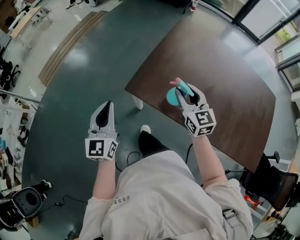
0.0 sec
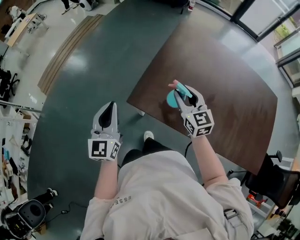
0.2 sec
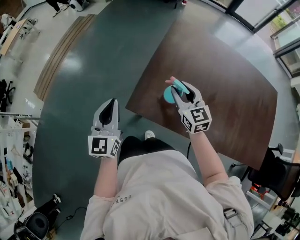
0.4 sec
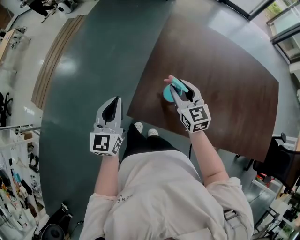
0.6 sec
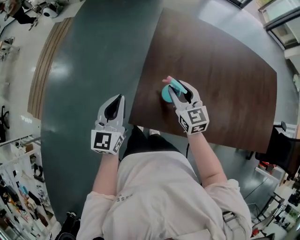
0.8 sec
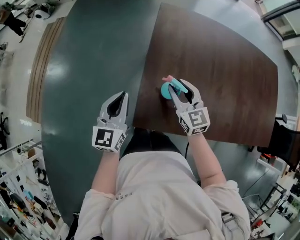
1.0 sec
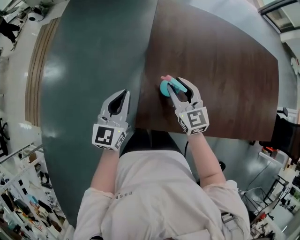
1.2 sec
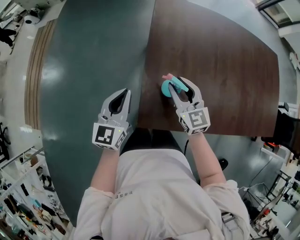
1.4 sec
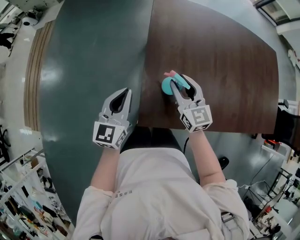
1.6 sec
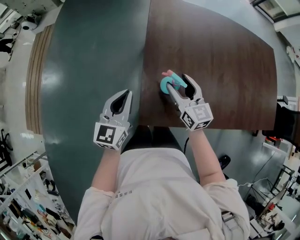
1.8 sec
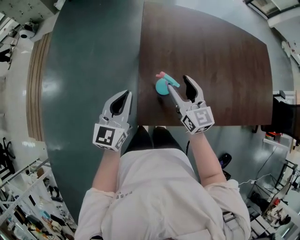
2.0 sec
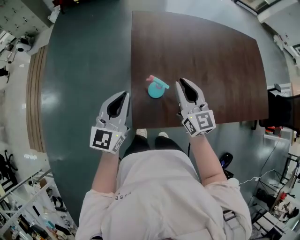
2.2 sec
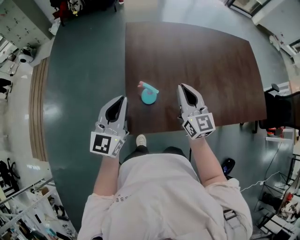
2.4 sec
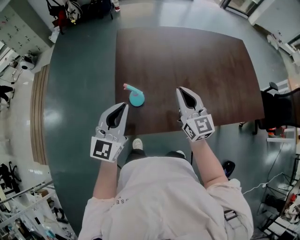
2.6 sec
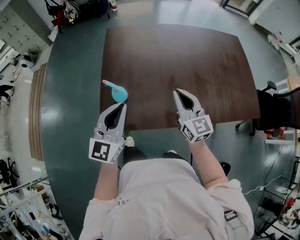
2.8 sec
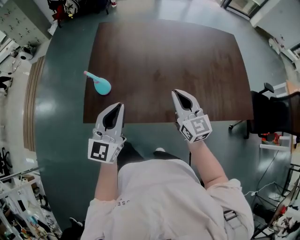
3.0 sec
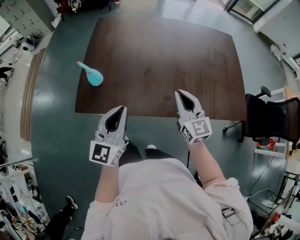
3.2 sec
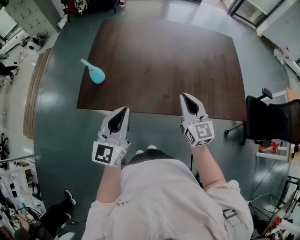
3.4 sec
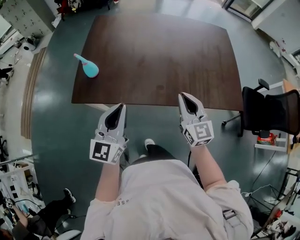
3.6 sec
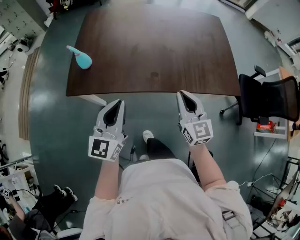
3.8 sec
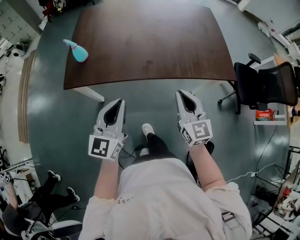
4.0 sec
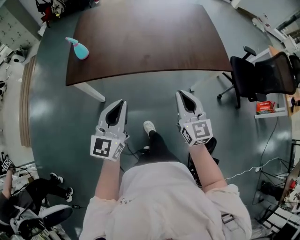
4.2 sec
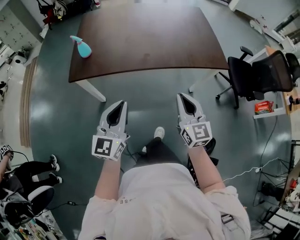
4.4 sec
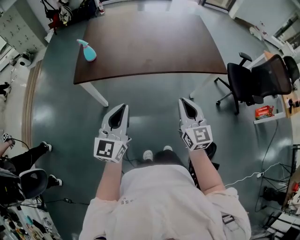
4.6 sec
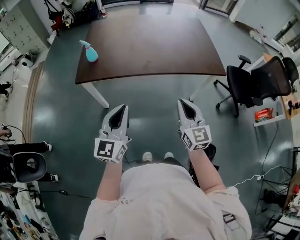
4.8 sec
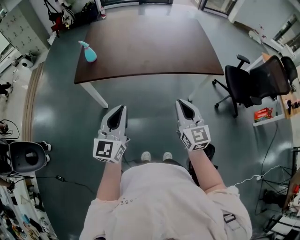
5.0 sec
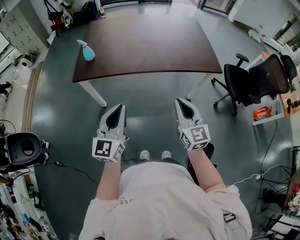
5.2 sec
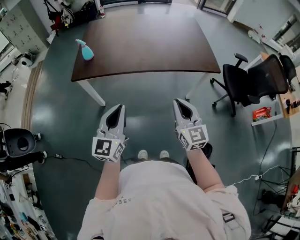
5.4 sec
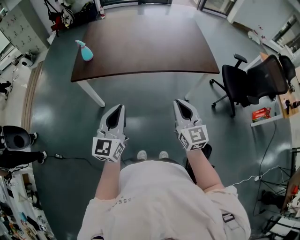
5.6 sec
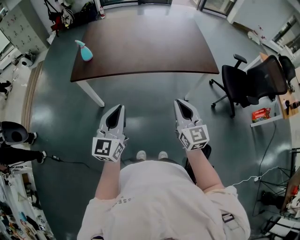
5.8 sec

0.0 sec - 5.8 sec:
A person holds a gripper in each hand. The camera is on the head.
0.0 sec - 1.4 sec: The right gripper shifts by approximately 20 cm, and rotates some 20 degrees. The left gripper shifts by roughly 30 cm, and rotates some 40 degrees.
1.4 sec - 2.8 sec: Both grippers move to the right and upward, some 25 cm. The left gripper turns by approximately 20 degrees, while the right gripper closes.
2.8 sec - 4.4 sec: Both grippers travel together backward and to the right, some 40 cm.
4.4 sec - 5.8 sec: The two grippers go approximately 5 cm backward.

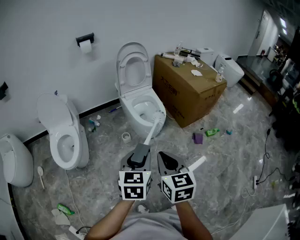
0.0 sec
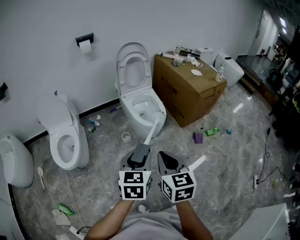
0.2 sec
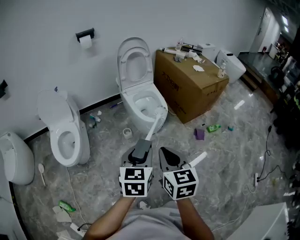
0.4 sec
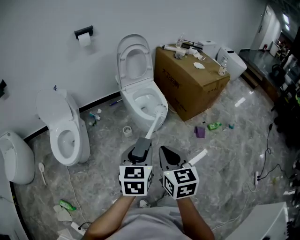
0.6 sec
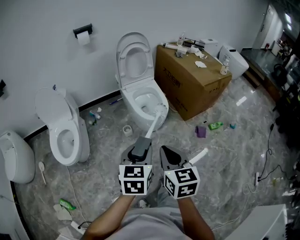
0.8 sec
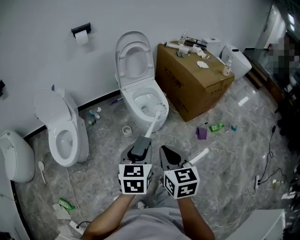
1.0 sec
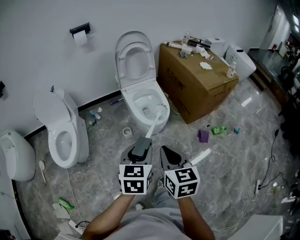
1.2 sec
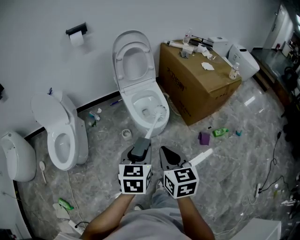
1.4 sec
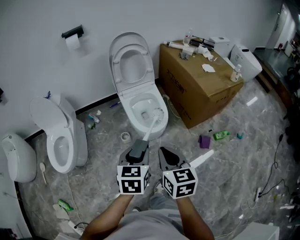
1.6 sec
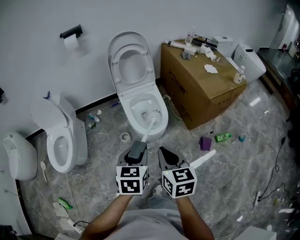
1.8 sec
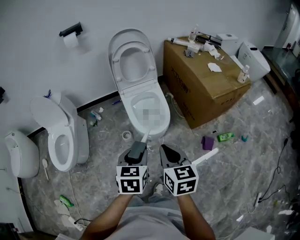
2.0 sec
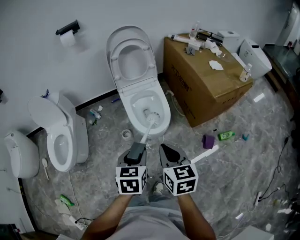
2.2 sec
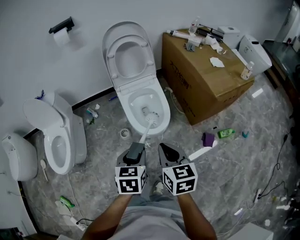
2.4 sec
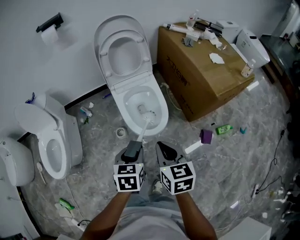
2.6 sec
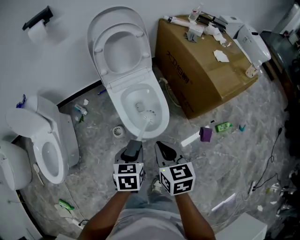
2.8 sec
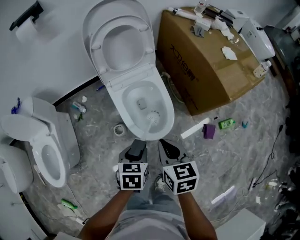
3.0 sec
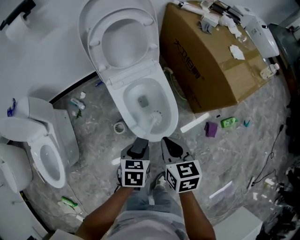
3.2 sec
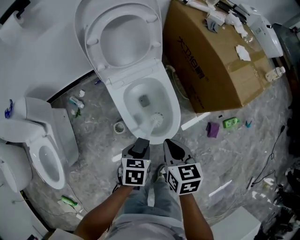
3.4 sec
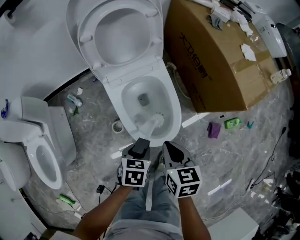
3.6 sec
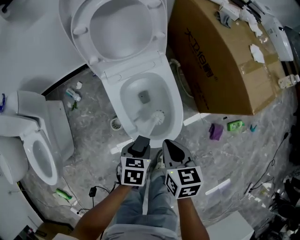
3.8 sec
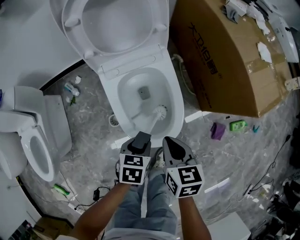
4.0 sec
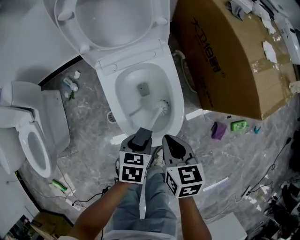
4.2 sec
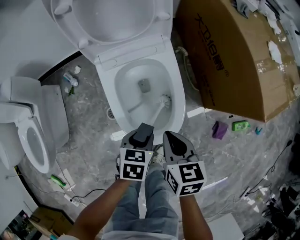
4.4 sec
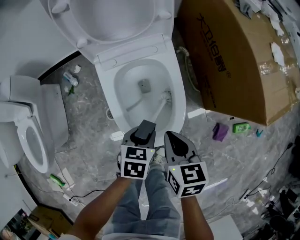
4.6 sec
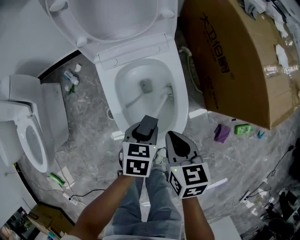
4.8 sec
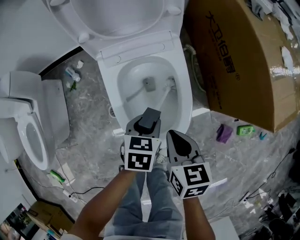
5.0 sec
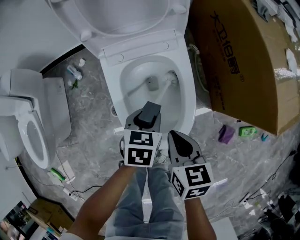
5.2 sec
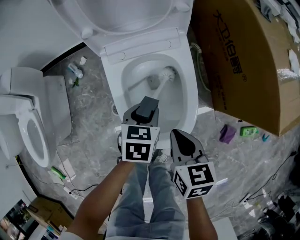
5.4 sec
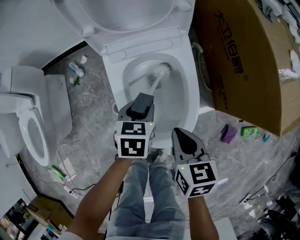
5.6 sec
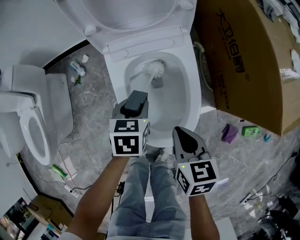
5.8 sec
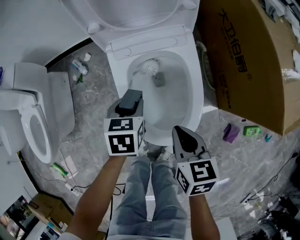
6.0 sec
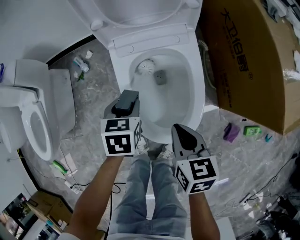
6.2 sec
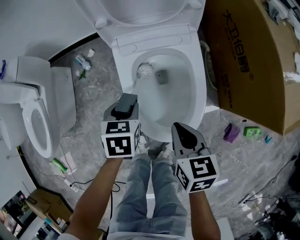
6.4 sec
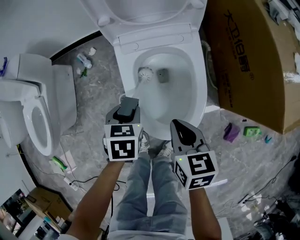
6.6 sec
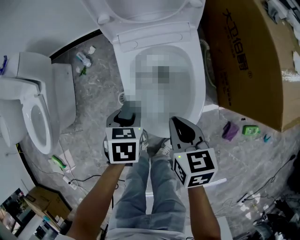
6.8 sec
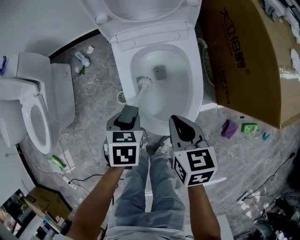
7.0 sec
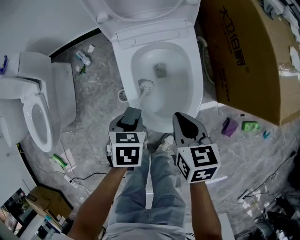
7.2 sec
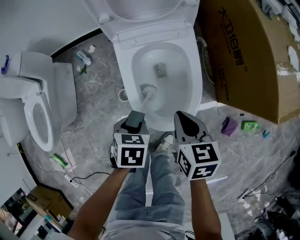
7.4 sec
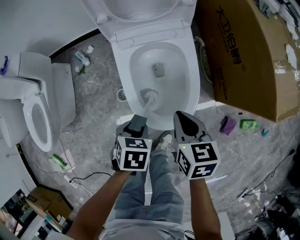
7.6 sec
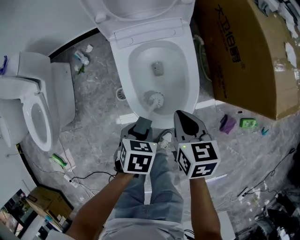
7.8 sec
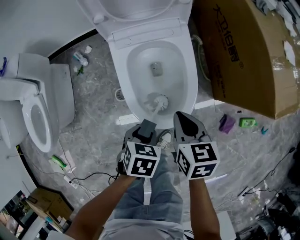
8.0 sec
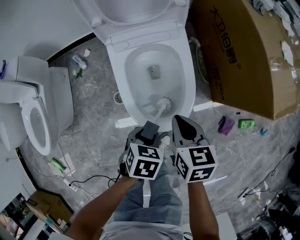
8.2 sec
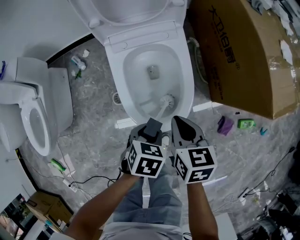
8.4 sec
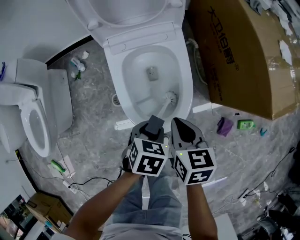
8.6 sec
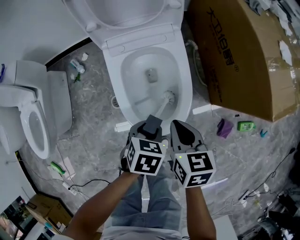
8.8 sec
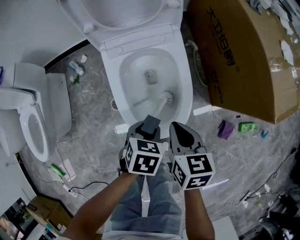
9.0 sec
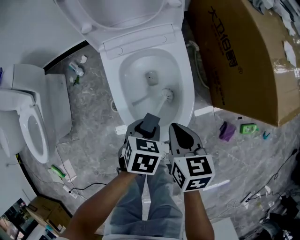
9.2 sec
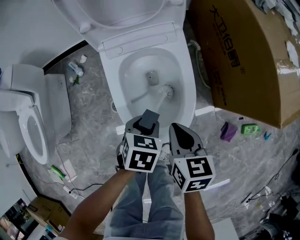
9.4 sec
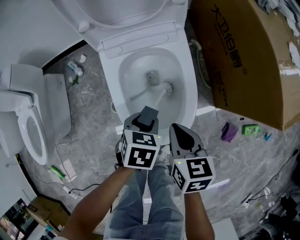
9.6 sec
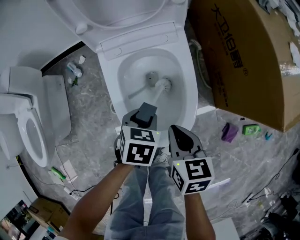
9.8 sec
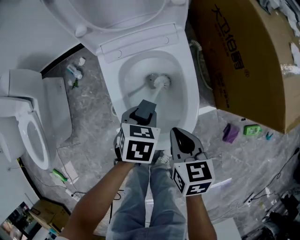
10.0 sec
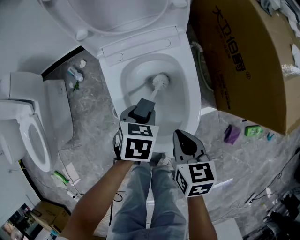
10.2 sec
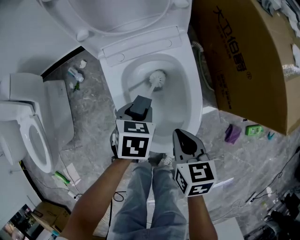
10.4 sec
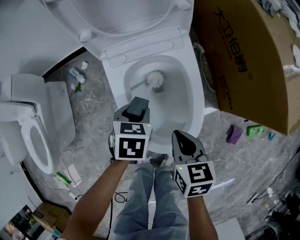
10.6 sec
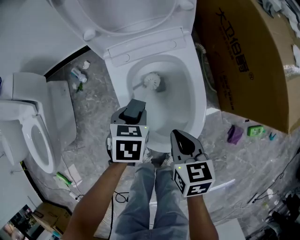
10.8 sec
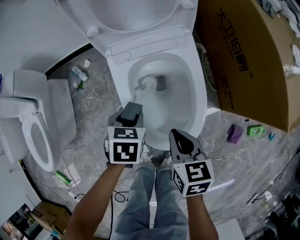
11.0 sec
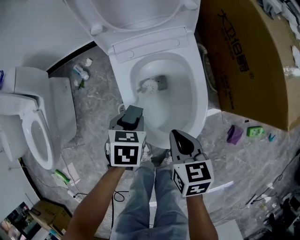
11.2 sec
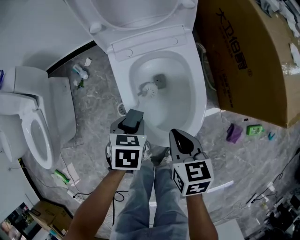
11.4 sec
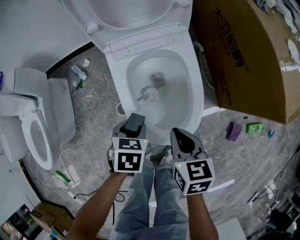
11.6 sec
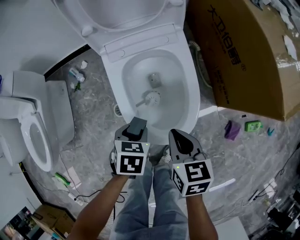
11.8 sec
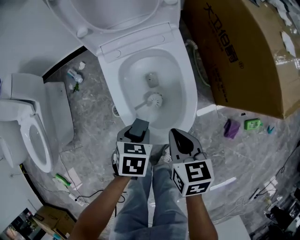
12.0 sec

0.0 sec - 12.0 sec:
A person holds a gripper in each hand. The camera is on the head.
0.0 sec - 1.6 sec: Both grippers move forward and to the right, some 25 cm.
1.6 sec - 3.0 sec: The grippers both shift forward and downward by approximately 30 cm. The left gripper rotates about 20 degrees.
3.0 sec - 4.4 sec: The two grippers go some 20 cm downward and forward.
4.4 sec - 6.0 sec: The left gripper shifts roughly 15 cm forward and to the left.
6.0 sec - 7.6 sec: The left gripper moves backward, about 15 cm.
7.6 sec - 9.0 sec: The left gripper goes approximately 10 cm to the right.
9.0 sec - 10.4 sec: The right gripper moves downward, approximately 5 cm, while the left gripper goes roughly 15 cm forward and to the left.
10.4 sec - 12.0 sec: The left gripper travels backward by about 10 cm.

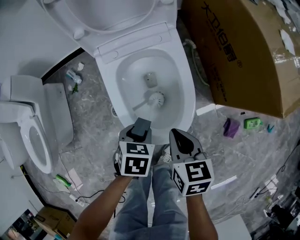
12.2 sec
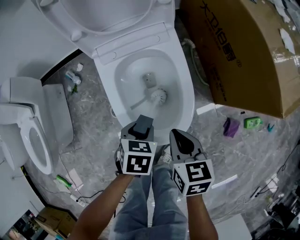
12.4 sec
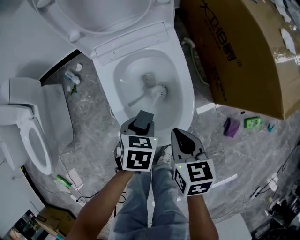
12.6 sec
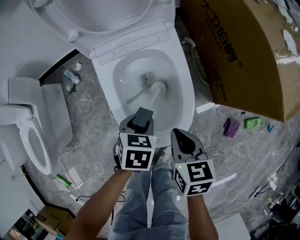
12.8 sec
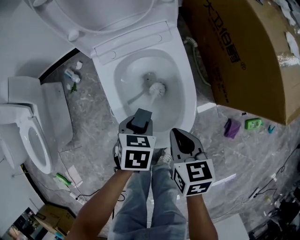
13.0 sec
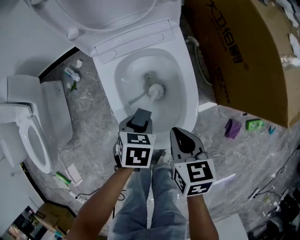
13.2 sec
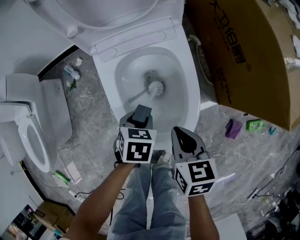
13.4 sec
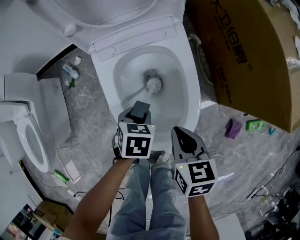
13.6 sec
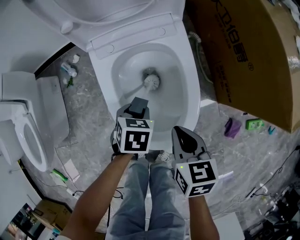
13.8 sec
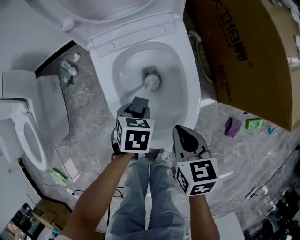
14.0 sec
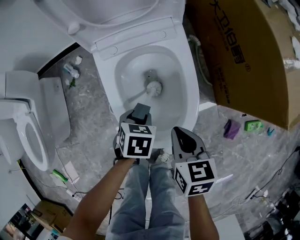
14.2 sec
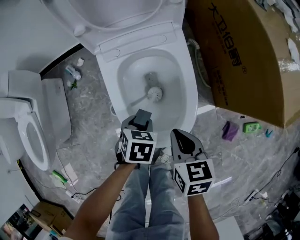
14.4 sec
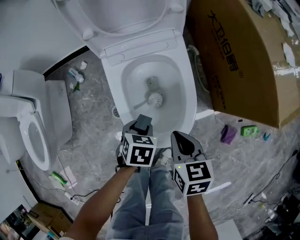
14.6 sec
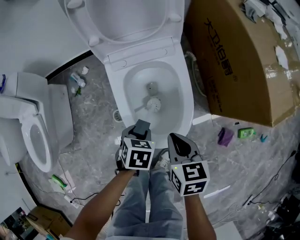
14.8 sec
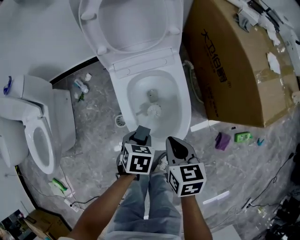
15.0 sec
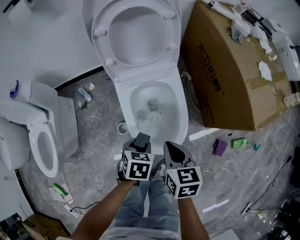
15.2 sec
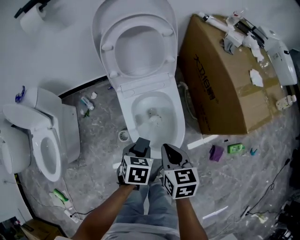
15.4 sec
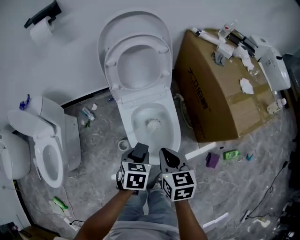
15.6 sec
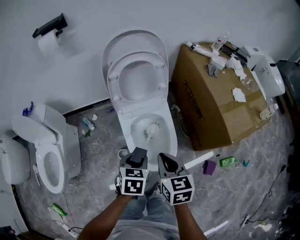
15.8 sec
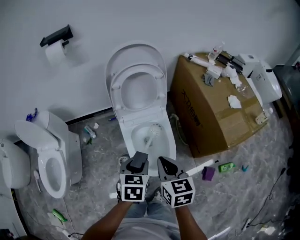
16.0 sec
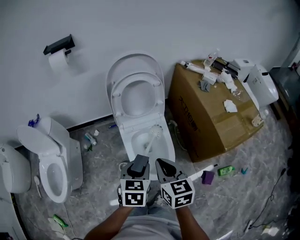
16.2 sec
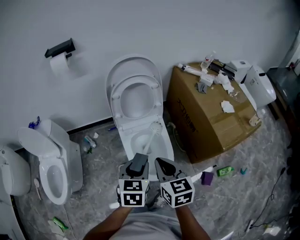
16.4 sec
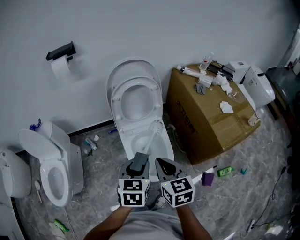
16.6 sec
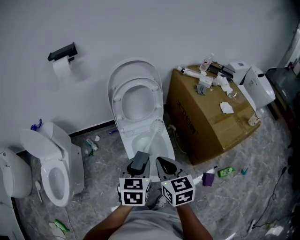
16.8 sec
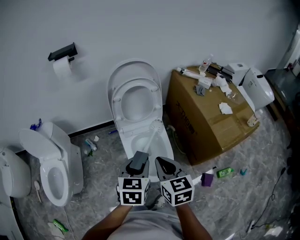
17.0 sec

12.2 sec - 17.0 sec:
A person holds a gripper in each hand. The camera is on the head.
12.2 sec - 13.8 sec: The left gripper is displaced forward and downward by approximately 10 cm. Meanwhile the right gripper moves approximately 5 cm.
13.8 sec - 15.4 sec: Both grippers travel together upward, approximately 20 cm.
15.4 sec - 17.0 sec: The two grippers go roughly 25 cm upward. The left gripper changes its angle by roughly 30 degrees.

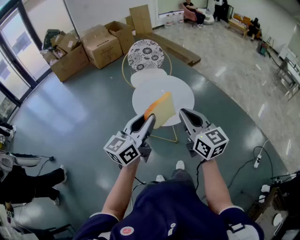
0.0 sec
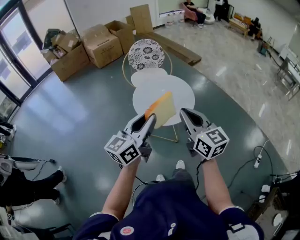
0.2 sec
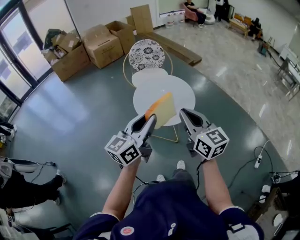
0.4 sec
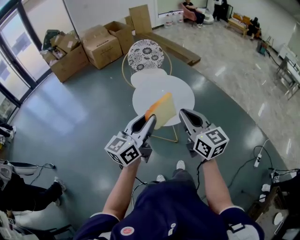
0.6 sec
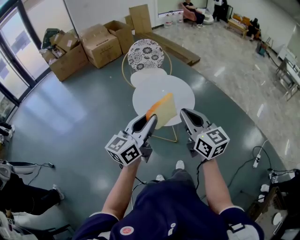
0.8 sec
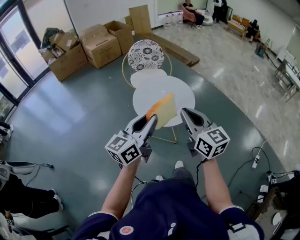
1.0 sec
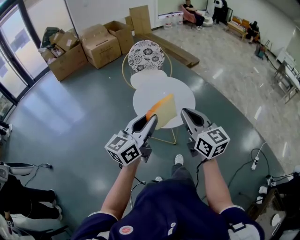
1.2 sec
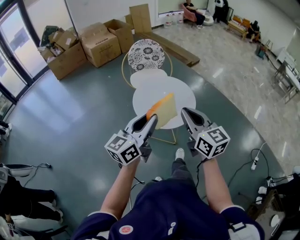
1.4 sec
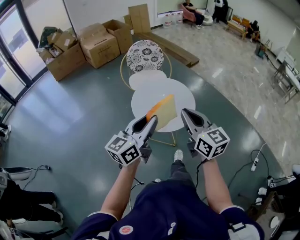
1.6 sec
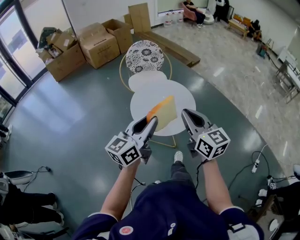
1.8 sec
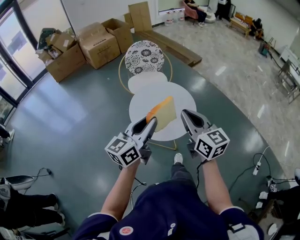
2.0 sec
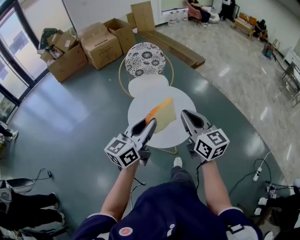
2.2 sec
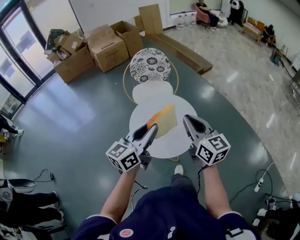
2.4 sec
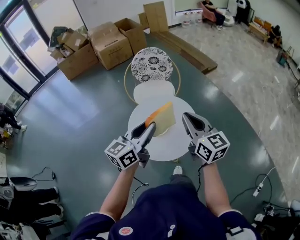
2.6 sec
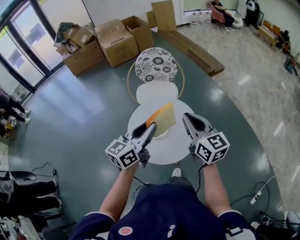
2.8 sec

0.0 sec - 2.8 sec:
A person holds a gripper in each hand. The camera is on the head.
0.0 sec - 1.4 sec: The grippers make only small movements.
1.4 sec - 2.8 sec: Both grippers travel together forward, about 25 cm.
